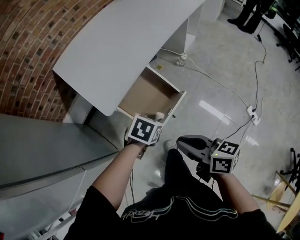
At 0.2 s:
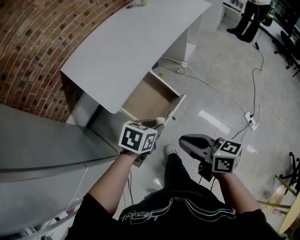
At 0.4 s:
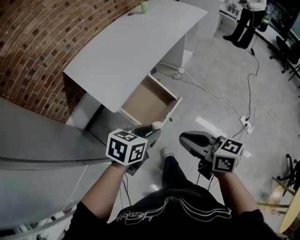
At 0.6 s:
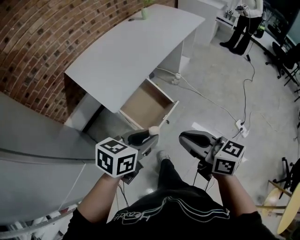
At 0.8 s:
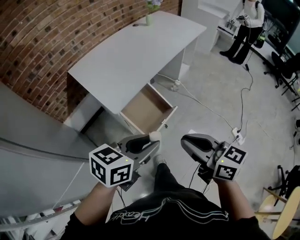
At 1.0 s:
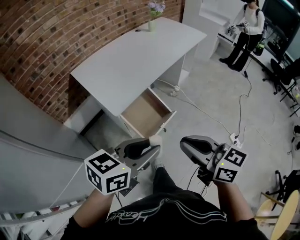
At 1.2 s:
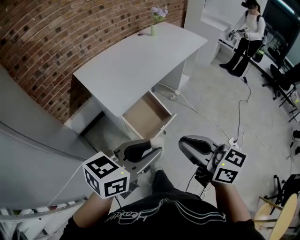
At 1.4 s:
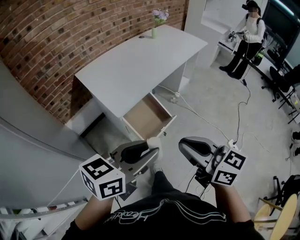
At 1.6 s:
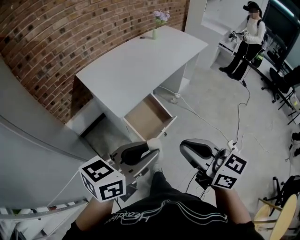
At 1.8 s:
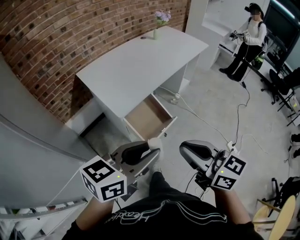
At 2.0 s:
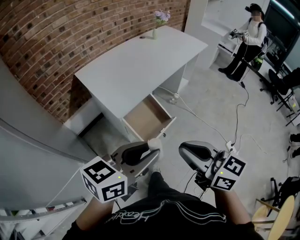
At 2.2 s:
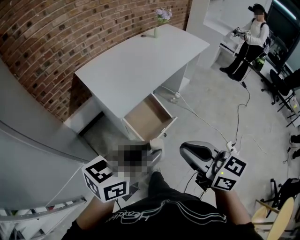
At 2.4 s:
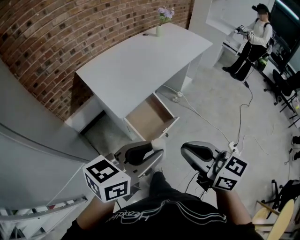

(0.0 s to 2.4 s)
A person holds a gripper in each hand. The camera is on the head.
0.0 s - 1.2 s: The left gripper is displaced upward and backward by some 40 cm, and angles its fingers upward, by some 50 degrees. The right gripper goes roughly 25 cm upward and backward, and changes its angle by approximately 30 degrees.
1.2 s - 2.4 s: There are only small adjustments of the grippers.

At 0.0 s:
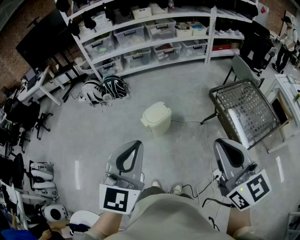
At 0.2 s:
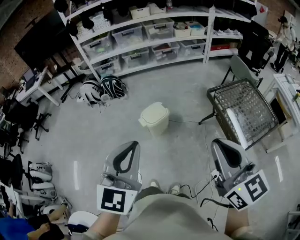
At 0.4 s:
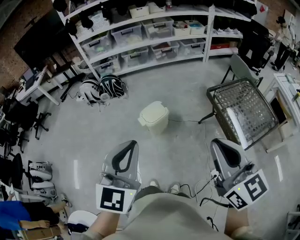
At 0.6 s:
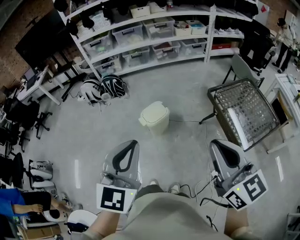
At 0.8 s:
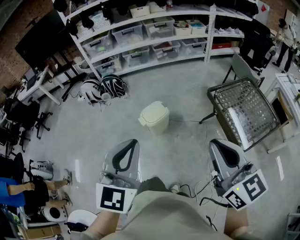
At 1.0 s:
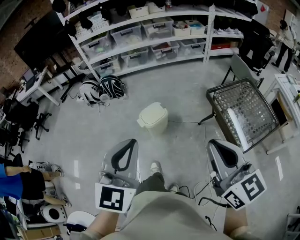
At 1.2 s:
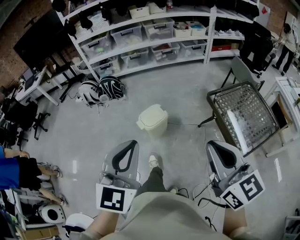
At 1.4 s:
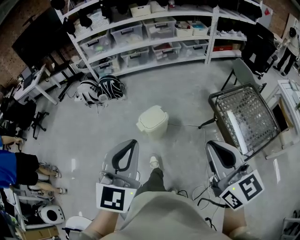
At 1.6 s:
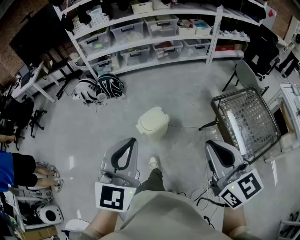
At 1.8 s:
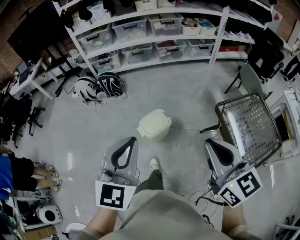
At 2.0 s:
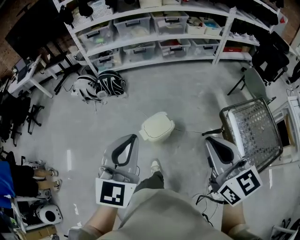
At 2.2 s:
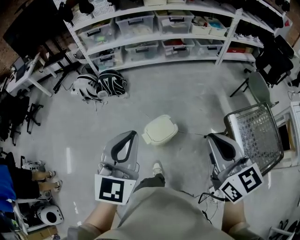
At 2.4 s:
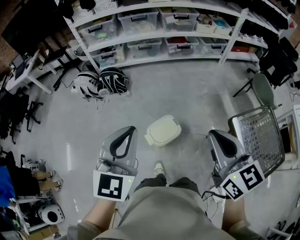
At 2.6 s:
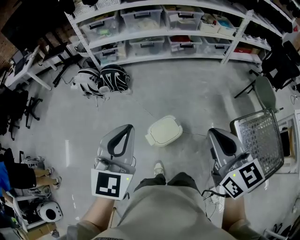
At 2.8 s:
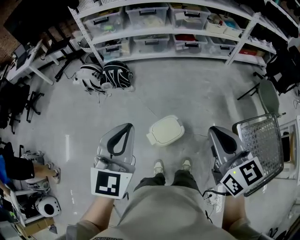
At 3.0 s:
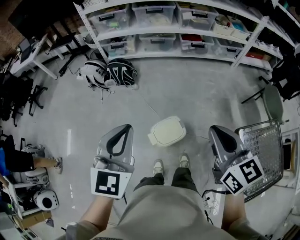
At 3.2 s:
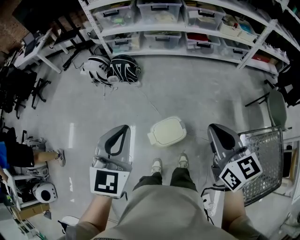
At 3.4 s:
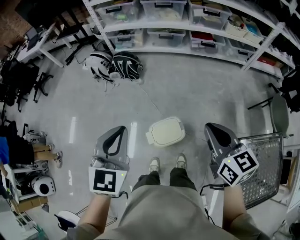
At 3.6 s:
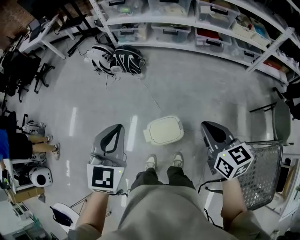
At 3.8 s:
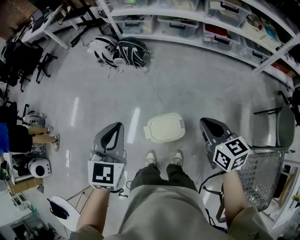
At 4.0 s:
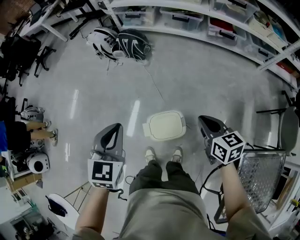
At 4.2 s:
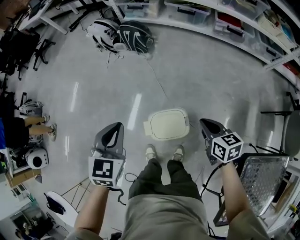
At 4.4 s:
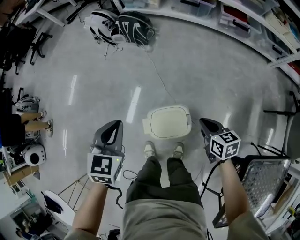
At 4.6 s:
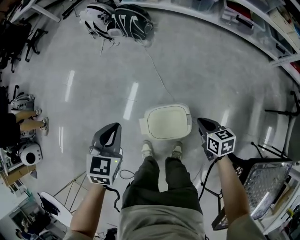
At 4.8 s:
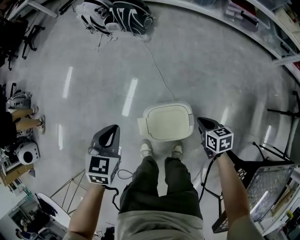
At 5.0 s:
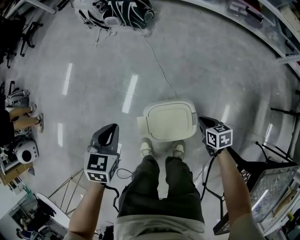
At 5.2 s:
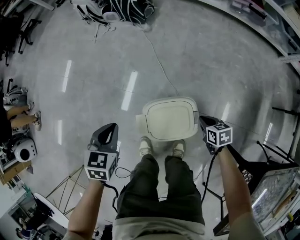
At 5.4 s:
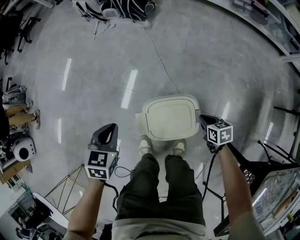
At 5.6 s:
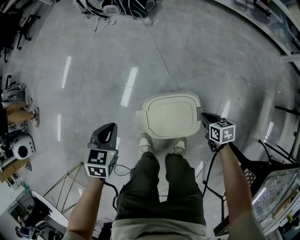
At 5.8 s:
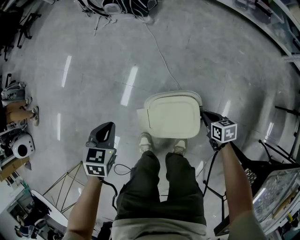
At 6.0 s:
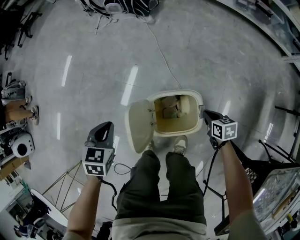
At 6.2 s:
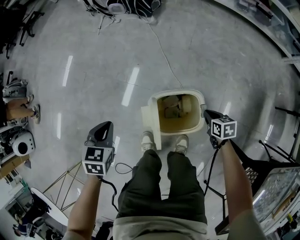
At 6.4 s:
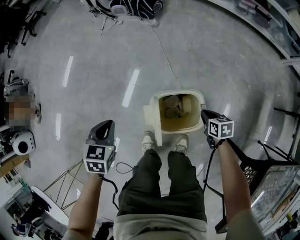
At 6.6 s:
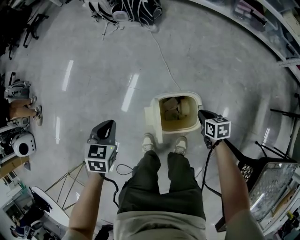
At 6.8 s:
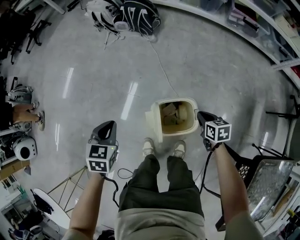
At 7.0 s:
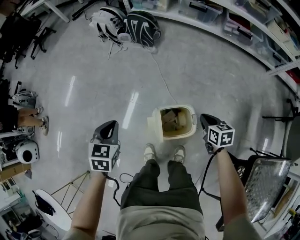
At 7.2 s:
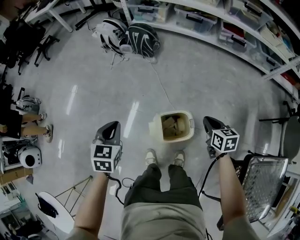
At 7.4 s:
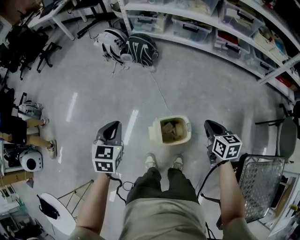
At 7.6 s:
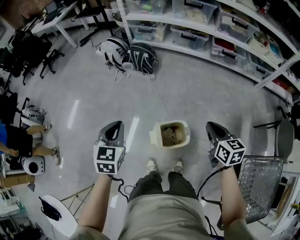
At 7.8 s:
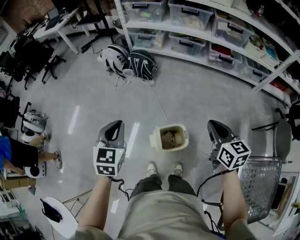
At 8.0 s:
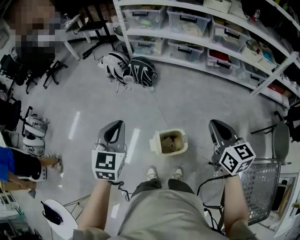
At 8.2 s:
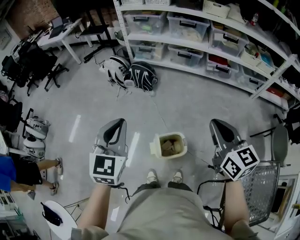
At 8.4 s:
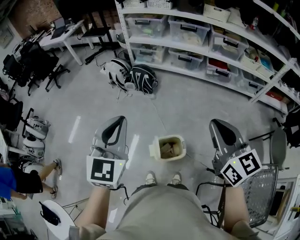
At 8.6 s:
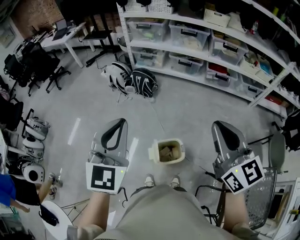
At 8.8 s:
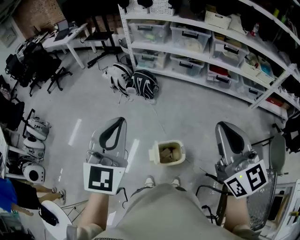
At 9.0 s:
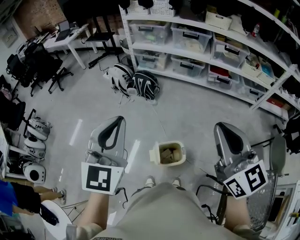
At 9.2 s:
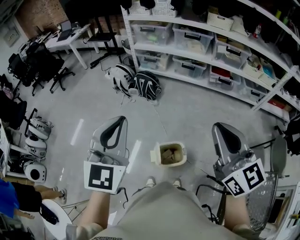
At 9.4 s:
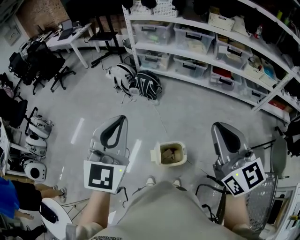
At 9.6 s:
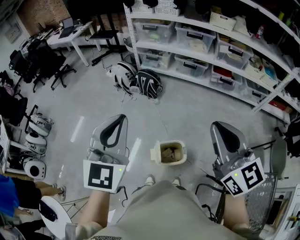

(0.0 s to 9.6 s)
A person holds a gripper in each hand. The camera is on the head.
0.0 s - 1.6 s: The grippers both shift forward by about 15 cm.
1.6 s - 3.2 s: Both grippers move forward, roughly 35 cm.
3.2 s - 4.8 s: Both grippers move downward, approximately 50 cm. The right gripper tips its fingers downward by approximately 30 degrees. Meanwhile the left gripper changes its angle by roughly 30 degrees.
4.8 s - 6.4 s: The right gripper shifts approximately 10 cm downward. Meanwhile the left gripper travels downward and to the left by approximately 15 cm.
6.4 s - 8.0 s: The grippers both shift upward by some 50 cm. The left gripper tilts its fingers approximately 30 degrees upward. Meanwhile the right gripper tips its fingers upward by approximately 40 degrees.
8.0 s - 9.6 s: The two grippers go about 15 cm upward. The right gripper swivels roughly 20 degrees.

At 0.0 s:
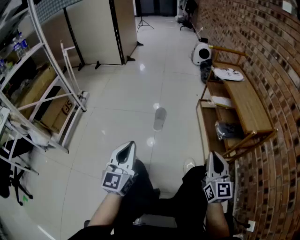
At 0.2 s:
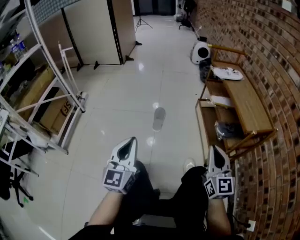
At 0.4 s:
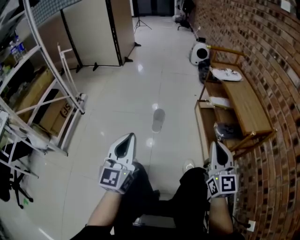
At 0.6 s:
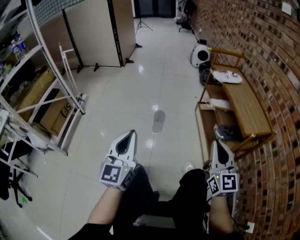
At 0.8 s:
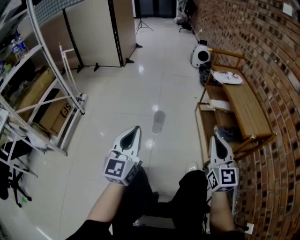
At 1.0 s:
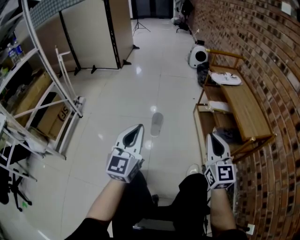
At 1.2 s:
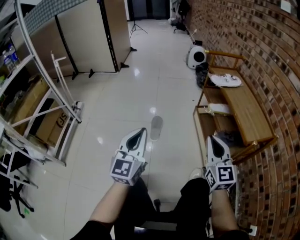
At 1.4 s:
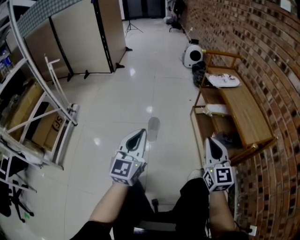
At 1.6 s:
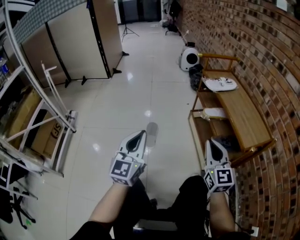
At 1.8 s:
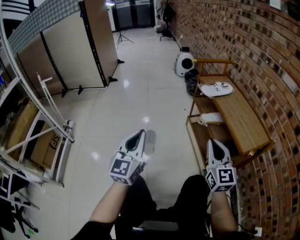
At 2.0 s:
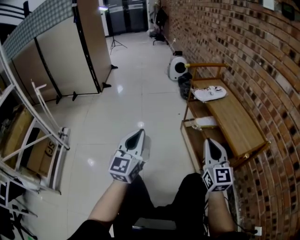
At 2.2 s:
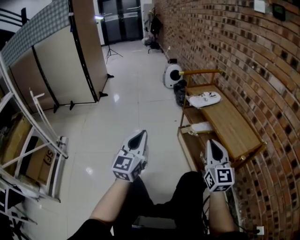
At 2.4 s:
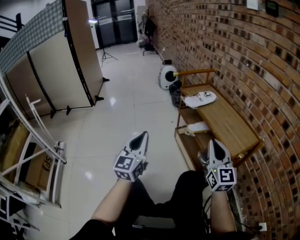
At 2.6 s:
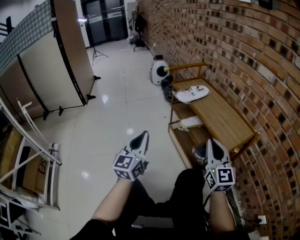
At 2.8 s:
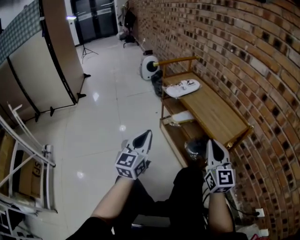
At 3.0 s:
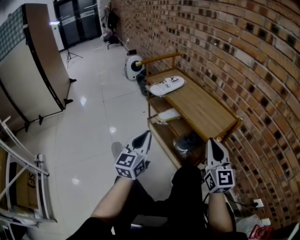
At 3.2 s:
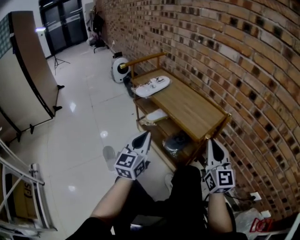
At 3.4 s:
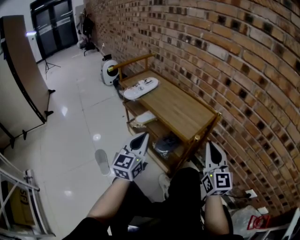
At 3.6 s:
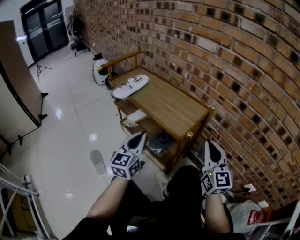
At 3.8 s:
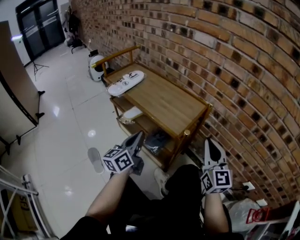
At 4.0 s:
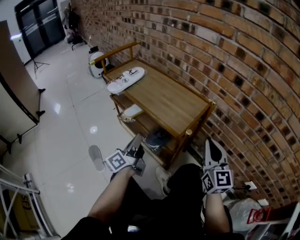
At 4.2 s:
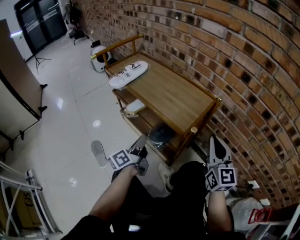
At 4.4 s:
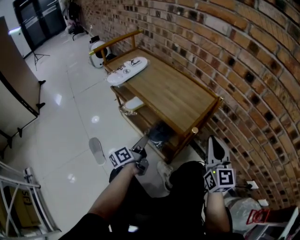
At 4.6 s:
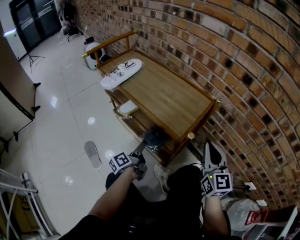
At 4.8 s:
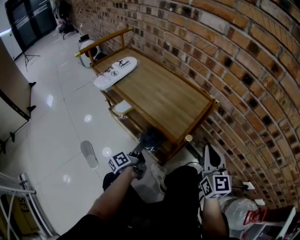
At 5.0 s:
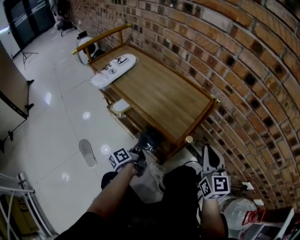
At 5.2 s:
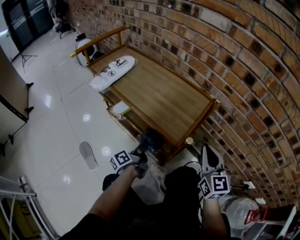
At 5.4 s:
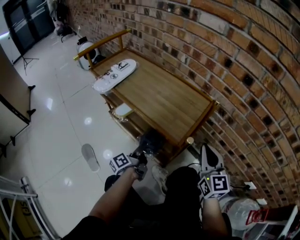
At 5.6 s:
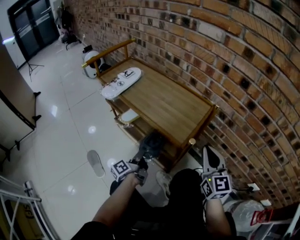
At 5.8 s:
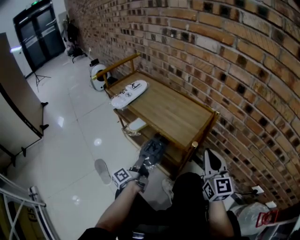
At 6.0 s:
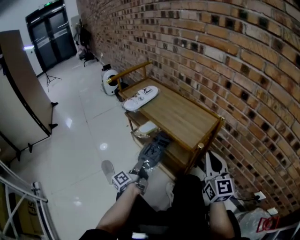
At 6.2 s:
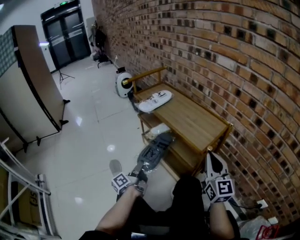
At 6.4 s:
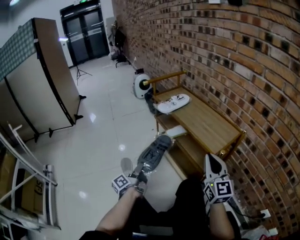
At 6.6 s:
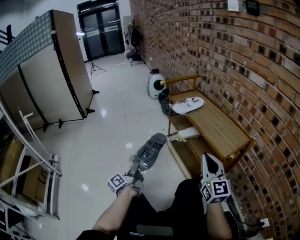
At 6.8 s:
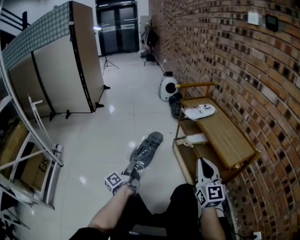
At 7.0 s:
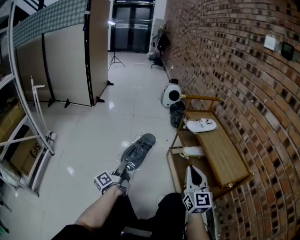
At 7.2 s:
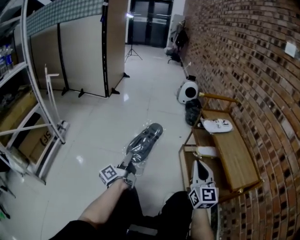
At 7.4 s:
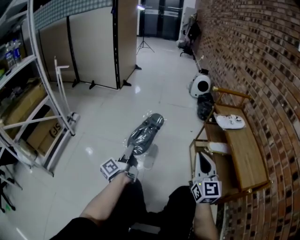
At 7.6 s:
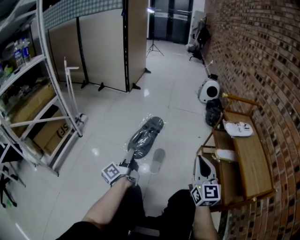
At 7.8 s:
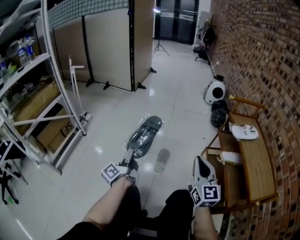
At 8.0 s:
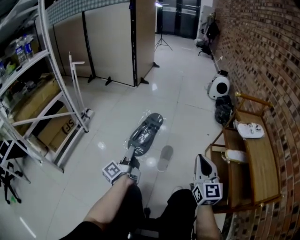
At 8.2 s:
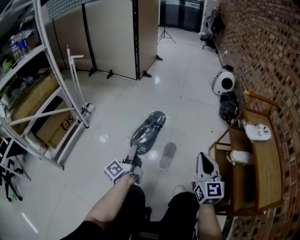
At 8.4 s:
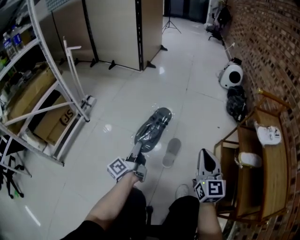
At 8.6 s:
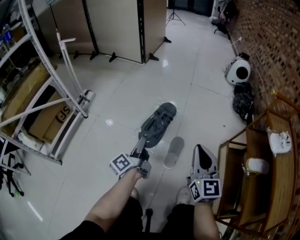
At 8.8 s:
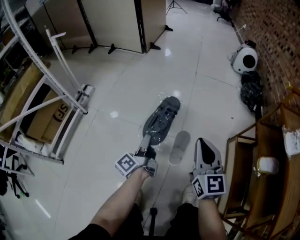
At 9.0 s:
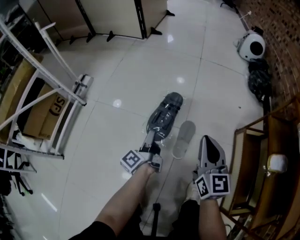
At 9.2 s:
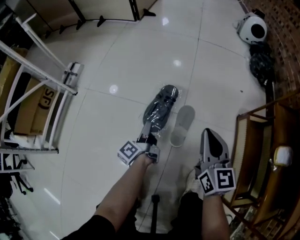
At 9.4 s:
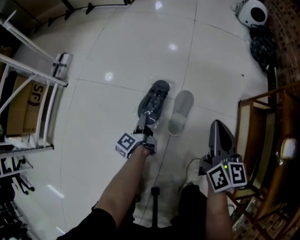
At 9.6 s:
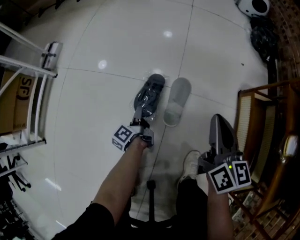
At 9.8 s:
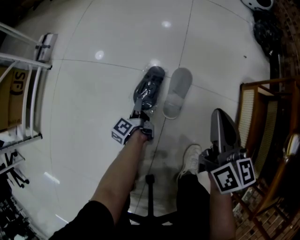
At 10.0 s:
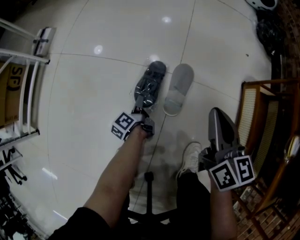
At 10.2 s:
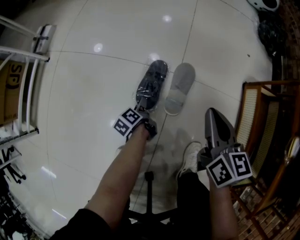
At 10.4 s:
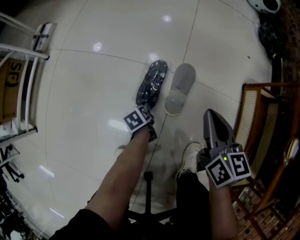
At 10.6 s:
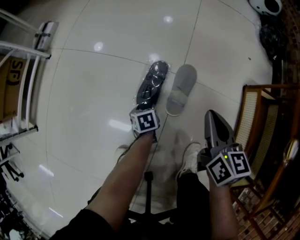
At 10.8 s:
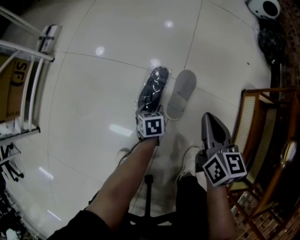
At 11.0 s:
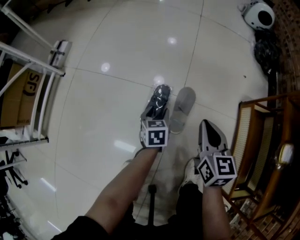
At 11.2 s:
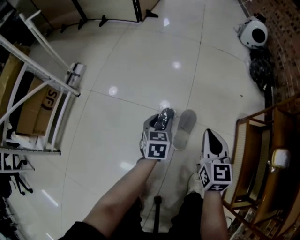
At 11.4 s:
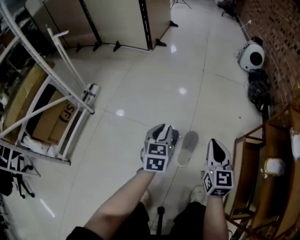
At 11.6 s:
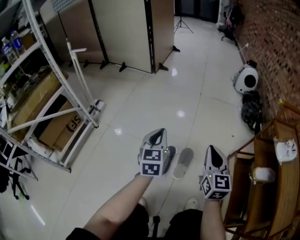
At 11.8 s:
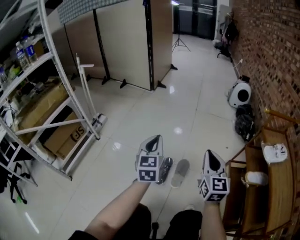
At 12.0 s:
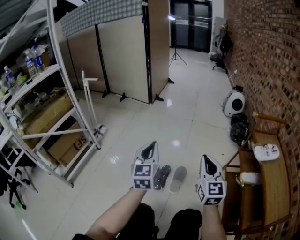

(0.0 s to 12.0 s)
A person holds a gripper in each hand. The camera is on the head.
0.0 s - 1.6 s: Both grippers move forward, approximately 15 cm.
1.6 s - 3.0 s: The right gripper shifts by approximately 15 cm, and swivels some 30 degrees, while the left gripper moves some 20 cm, and changes its angle by roughly 30 degrees.
3.0 s - 4.4 s: The left gripper is displaced downward, to the right and forward by approximately 25 cm, rolls counterclockwise, seen from behind, by approximately 60 degrees, and opens its fingers. The right gripper heads to the right and downward, covering roughly 15 cm.
4.4 s - 6.0 s: The right gripper changes place by roughly 5 cm. Meanwhile the left gripper moves to the left, approximately 5 cm, and closes its fingers.
6.0 s - 7.6 s: The left gripper shifts by about 40 cm, and rotates about 50 degrees; the right gripper ends up about 40 cm from where it was, and rotates approximately 50 degrees.
7.6 s - 9.0 s: The right gripper goes about 30 cm forward and downward; the left gripper goes some 30 cm downward and forward.
9.0 s - 10.4 s: The left gripper is displaced downward by some 30 cm, points its fingers some 70 degrees further downward, and opens its fingers. The right gripper travels downward by some 15 cm, and changes its angle by some 30 degrees.
10.4 s - 12.0 s: The left gripper is displaced upward by about 70 cm, tips its fingers upward by approximately 60 degrees, and closes. The right gripper heads upward, covering roughly 35 cm, and changes its angle by about 40 degrees.
